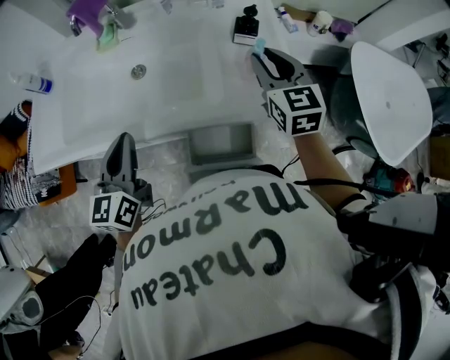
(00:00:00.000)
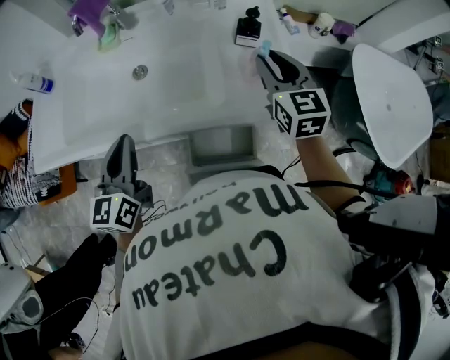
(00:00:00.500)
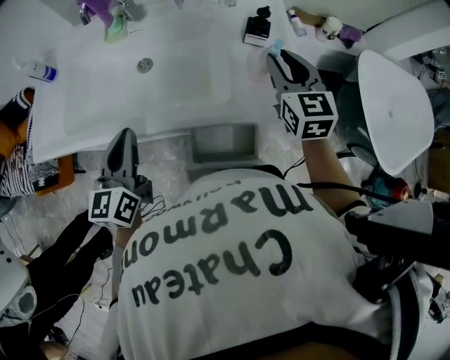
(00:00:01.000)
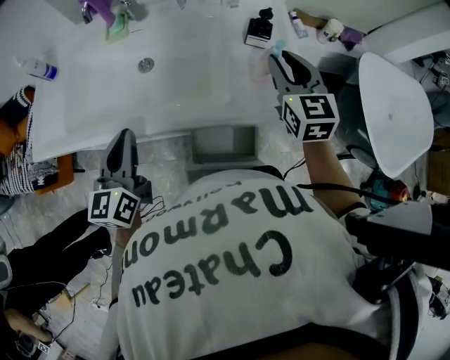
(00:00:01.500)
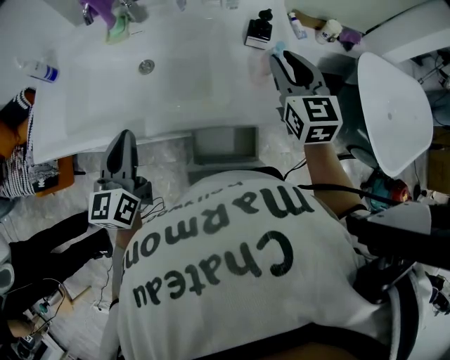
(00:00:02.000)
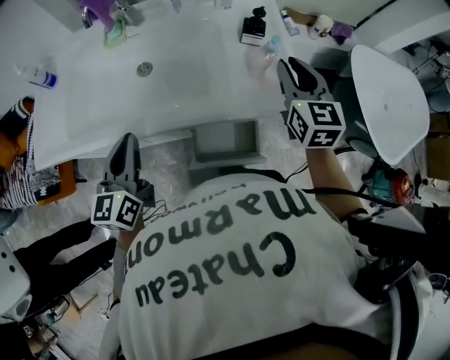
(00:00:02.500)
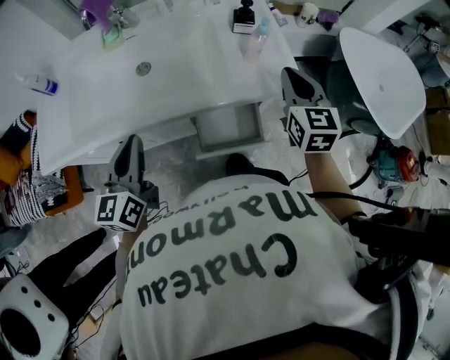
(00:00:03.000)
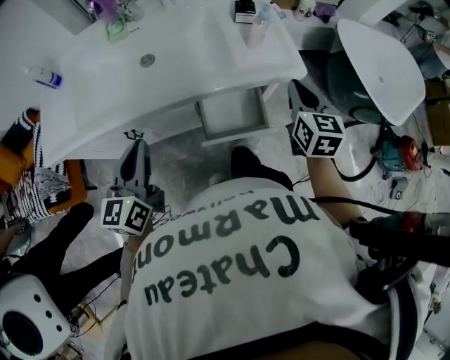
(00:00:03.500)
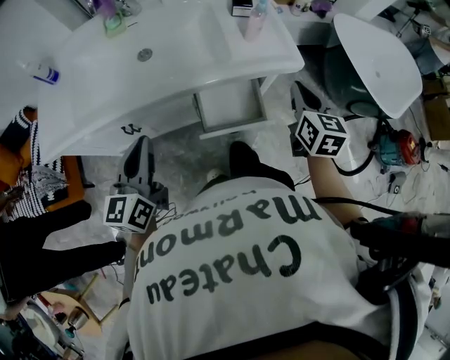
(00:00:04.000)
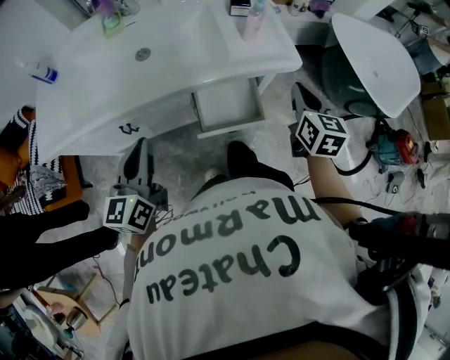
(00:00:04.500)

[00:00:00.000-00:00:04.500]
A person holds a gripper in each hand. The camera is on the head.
00:00:00.000 to 00:00:02.000: There are only small adjustments of the grippers.
00:00:02.000 to 00:00:04.500: The left gripper moves backward, roughly 10 cm. The right gripper is displaced backward by approximately 20 cm, turns by about 30 degrees, and closes up.

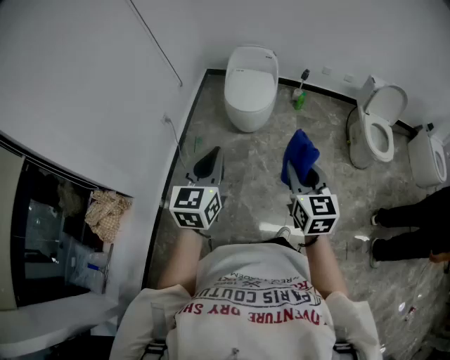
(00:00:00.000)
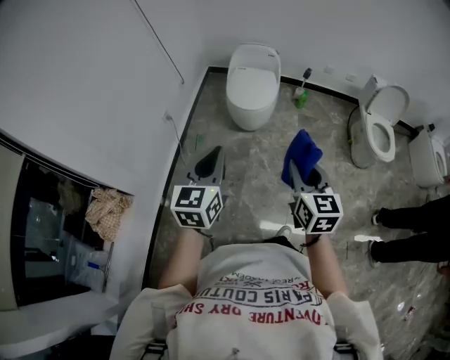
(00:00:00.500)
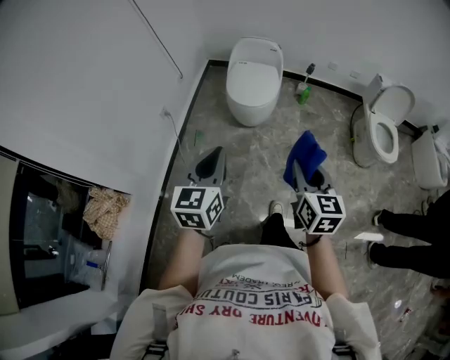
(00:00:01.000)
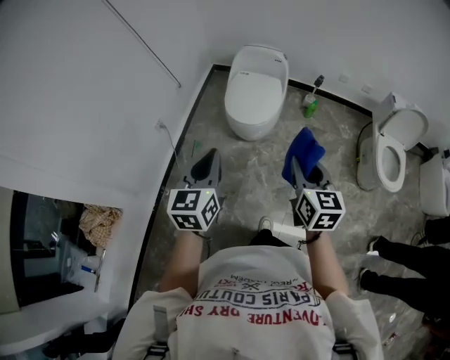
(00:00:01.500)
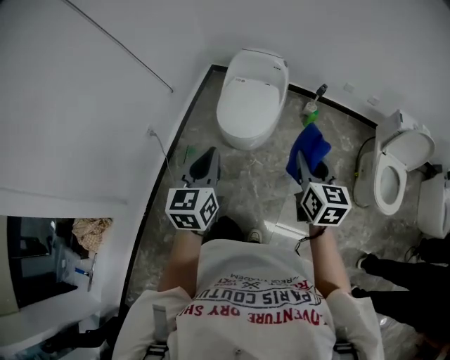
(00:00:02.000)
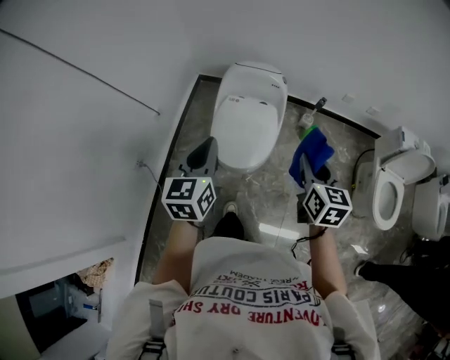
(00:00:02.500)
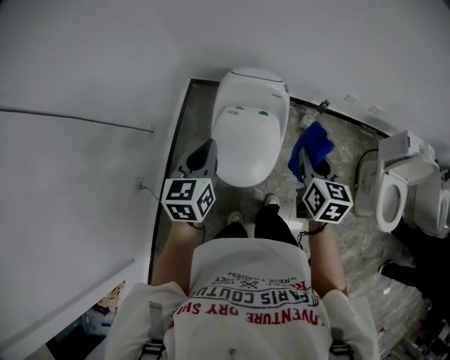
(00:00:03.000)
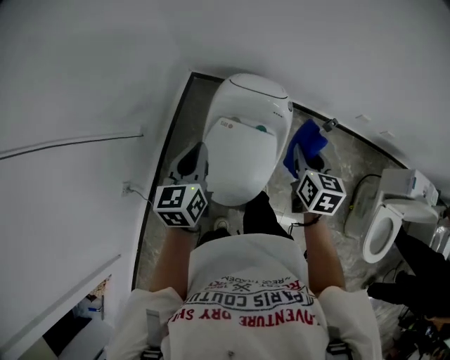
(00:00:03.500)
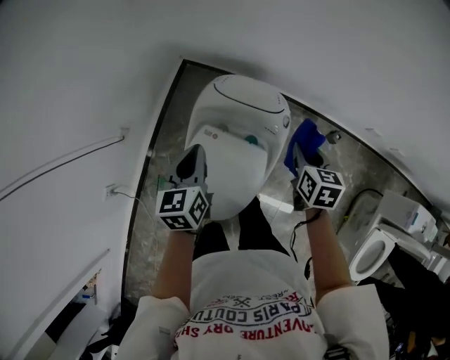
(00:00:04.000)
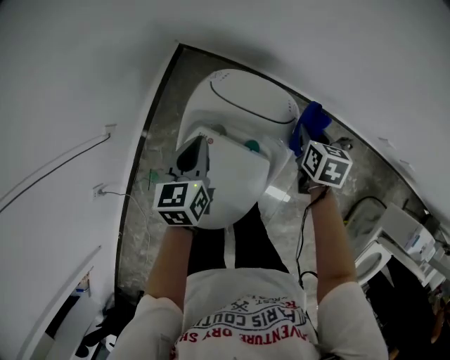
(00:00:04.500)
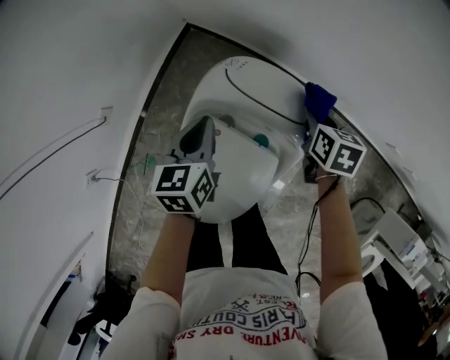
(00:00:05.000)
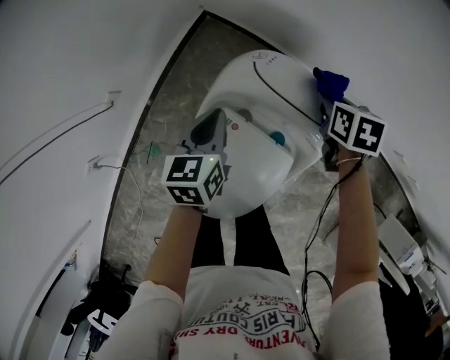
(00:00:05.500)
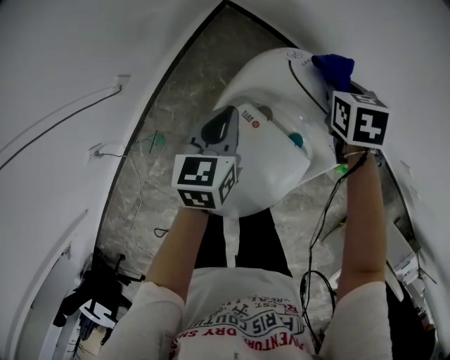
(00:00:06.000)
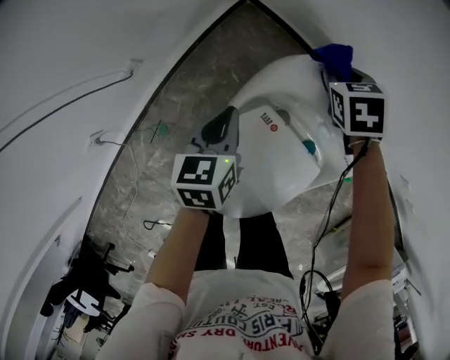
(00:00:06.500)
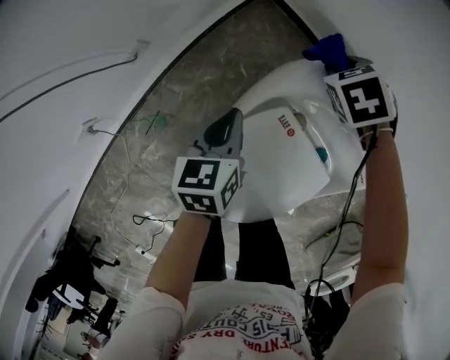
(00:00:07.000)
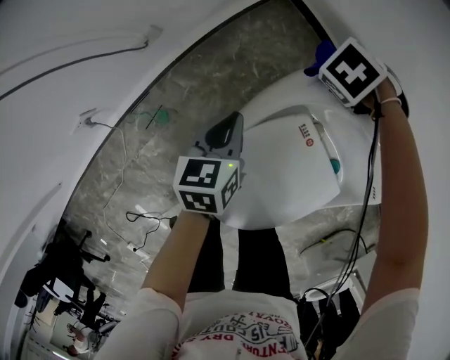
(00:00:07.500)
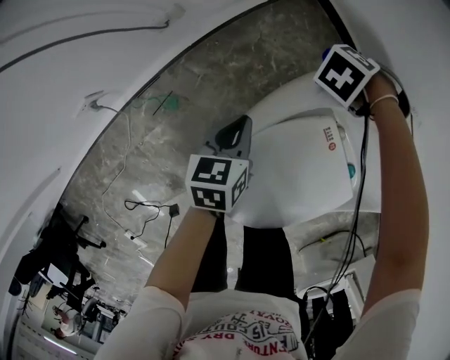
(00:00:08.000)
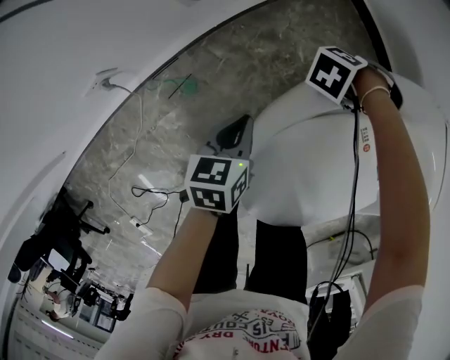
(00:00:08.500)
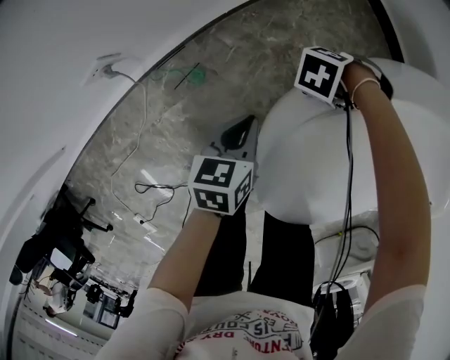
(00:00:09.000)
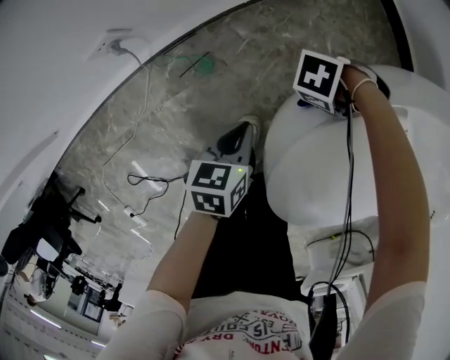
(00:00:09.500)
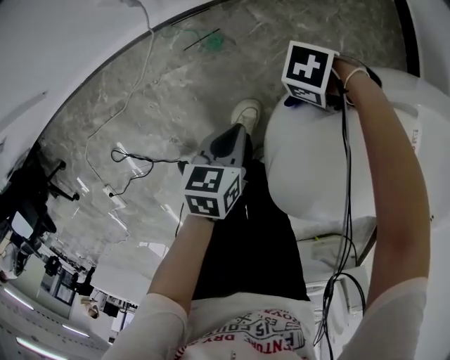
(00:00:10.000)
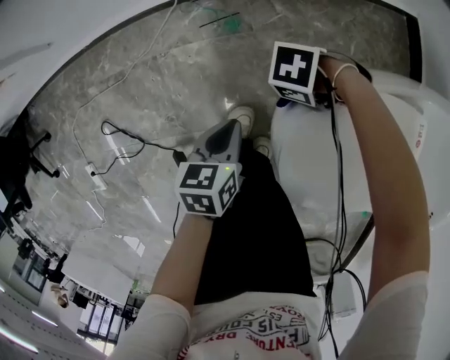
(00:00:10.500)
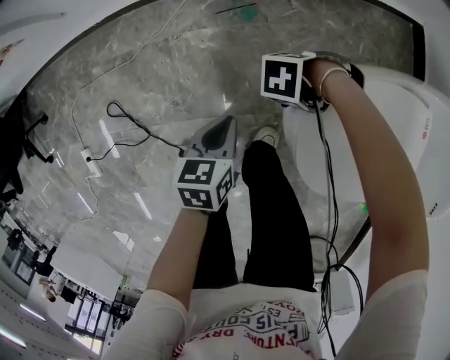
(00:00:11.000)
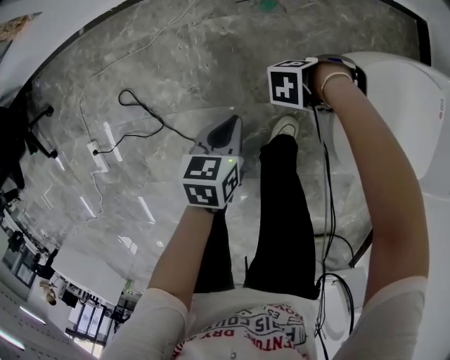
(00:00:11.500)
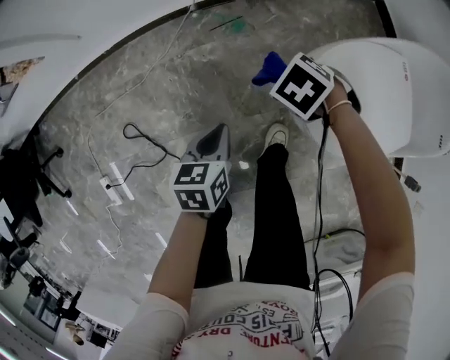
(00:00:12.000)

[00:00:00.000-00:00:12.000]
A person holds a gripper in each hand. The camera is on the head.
00:00:00.000 to 00:00:02.000: The left gripper goes roughly 35 cm forward; the right gripper shifts some 40 cm forward and to the right.
00:00:02.000 to 00:00:04.000: Both grippers are carried forward, about 70 cm. The right gripper changes its angle by approximately 30 degrees, while the left gripper turns by roughly 20 degrees.
00:00:04.000 to 00:00:06.000: The left gripper travels downward, forward and to the left by some 20 cm, while the right gripper is displaced forward, to the left and downward by some 30 cm, and swivels approximately 30 degrees.
00:00:06.000 to 00:00:08.000: The right gripper shifts by about 30 cm, and rolls counterclockwise, seen from behind, by some 70 degrees. Meanwhile the left gripper moves about 25 cm, and turns by some 20 degrees.
00:00:08.000 to 00:00:10.000: The right gripper shifts some 35 cm backward, to the right and downward, and swivels some 40 degrees; the left gripper is displaced to the right, backward and downward by some 30 cm.
00:00:10.000 to 00:00:12.000: The right gripper changes place by about 25 cm, and rotates approximately 40 degrees, while the left gripper moves some 30 cm.

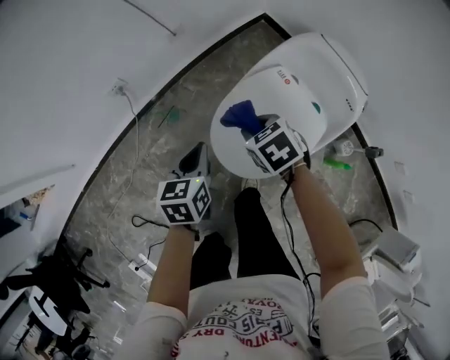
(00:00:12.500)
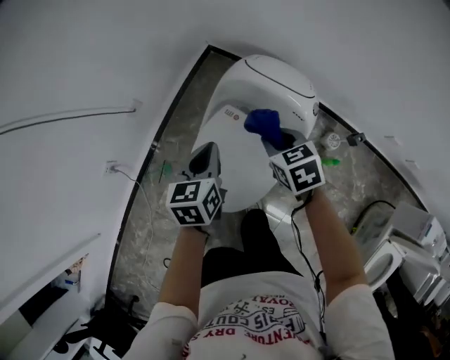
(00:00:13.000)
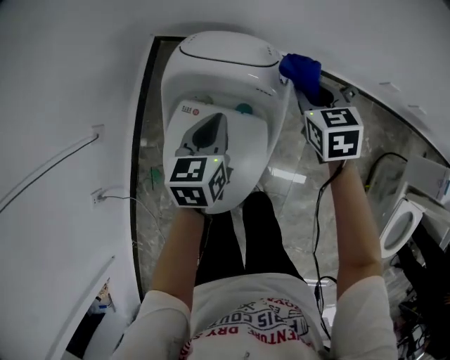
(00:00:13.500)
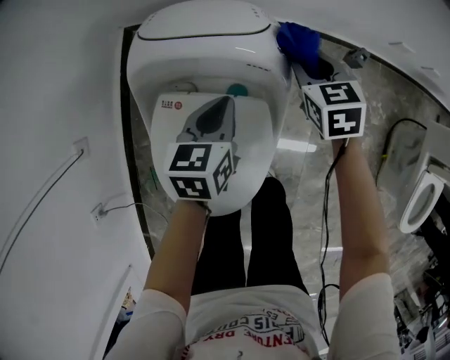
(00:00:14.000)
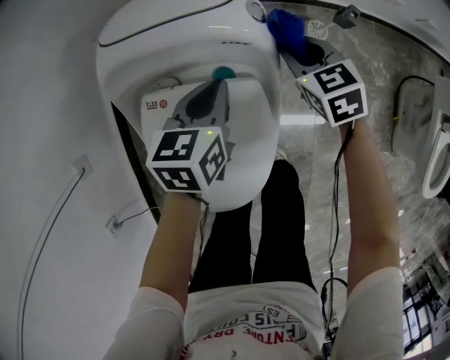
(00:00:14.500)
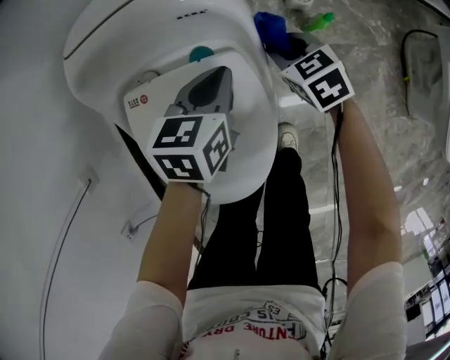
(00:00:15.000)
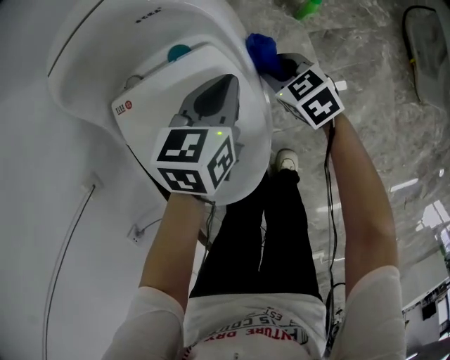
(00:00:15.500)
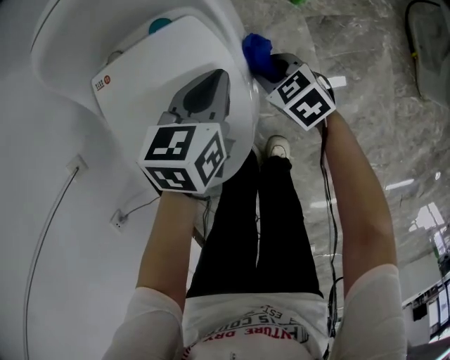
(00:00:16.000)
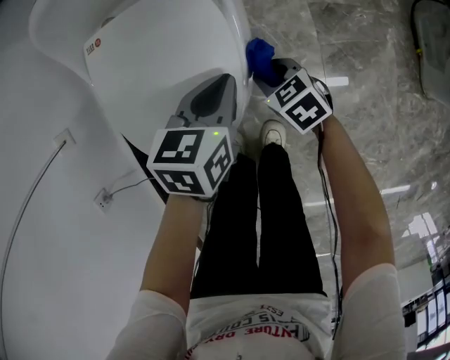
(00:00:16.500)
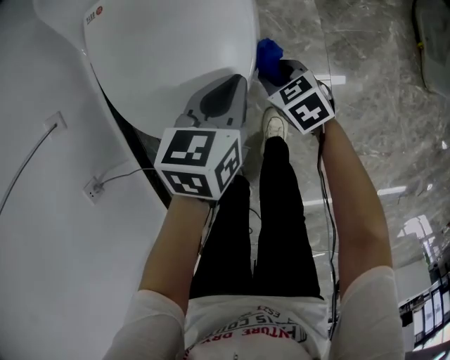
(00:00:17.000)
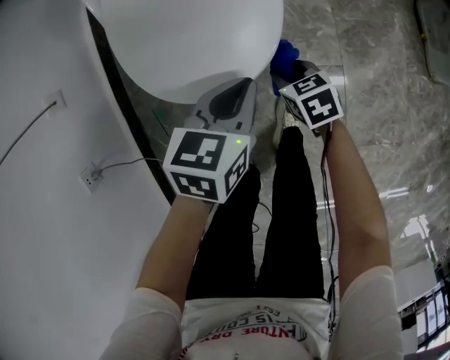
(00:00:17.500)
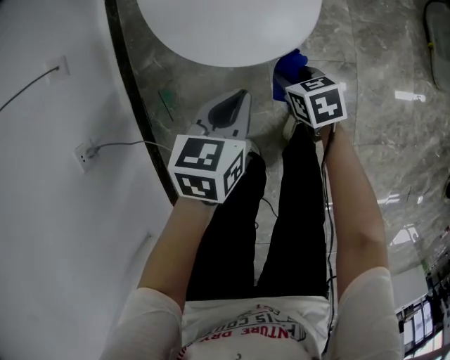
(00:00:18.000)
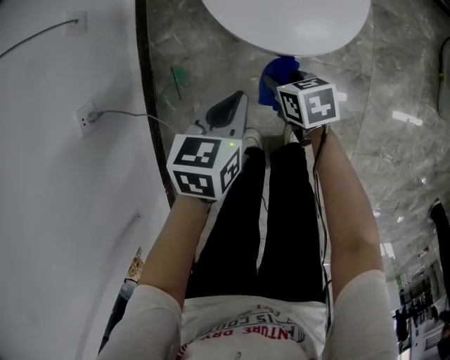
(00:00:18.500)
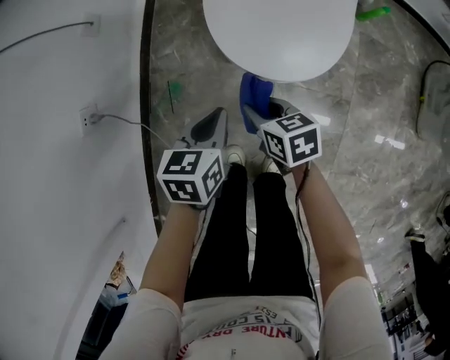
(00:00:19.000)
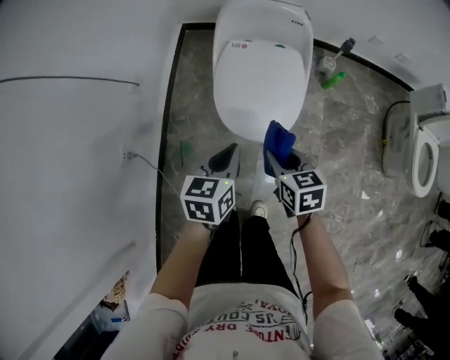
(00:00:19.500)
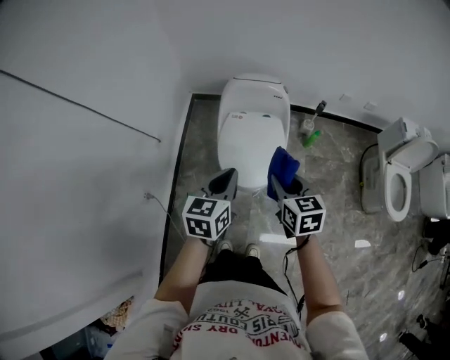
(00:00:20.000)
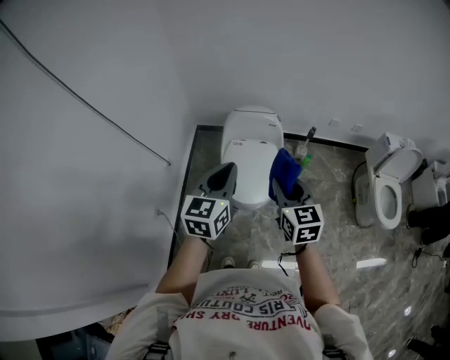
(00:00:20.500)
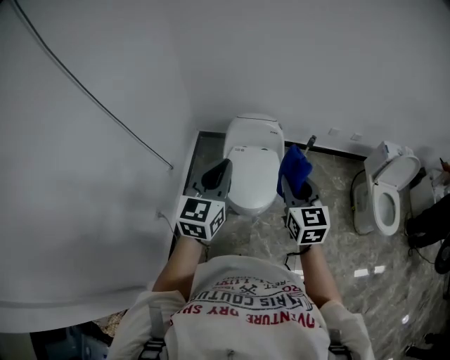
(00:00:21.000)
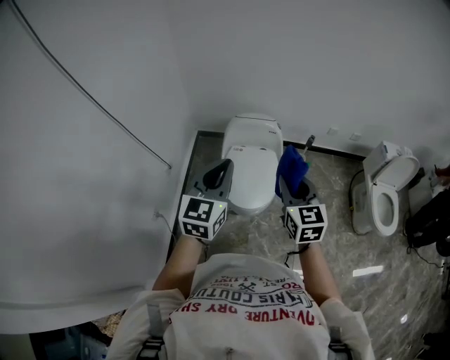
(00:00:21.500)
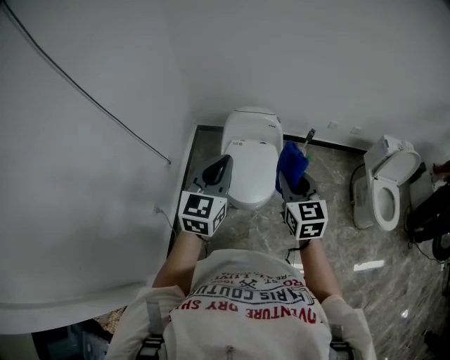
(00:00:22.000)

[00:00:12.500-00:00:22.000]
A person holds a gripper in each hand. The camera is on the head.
00:00:12.500 to 00:00:14.500: The two grippers travel together, roughly 50 cm. The left gripper changes its angle by approximately 60 degrees, while the right gripper rotates some 60 degrees.
00:00:14.500 to 00:00:16.500: The left gripper is displaced backward and to the right by approximately 25 cm. Meanwhile the right gripper shifts some 35 cm backward and downward.
00:00:16.500 to 00:00:18.000: Both grippers move backward and to the left, some 25 cm.
00:00:18.000 to 00:00:20.000: Both grippers move upward, approximately 50 cm. The right gripper turns by some 30 degrees; the left gripper changes its angle by about 30 degrees.
00:00:20.000 to 00:00:22.000: Both grippers travel together upward, approximately 20 cm. The left gripper rotates roughly 30 degrees. Meanwhile the right gripper changes its angle by some 20 degrees.
